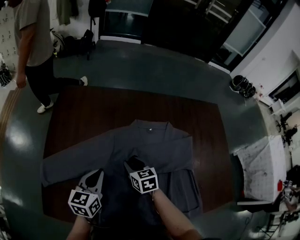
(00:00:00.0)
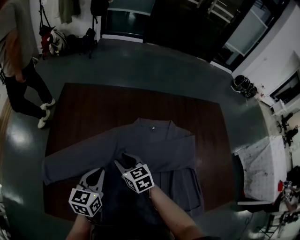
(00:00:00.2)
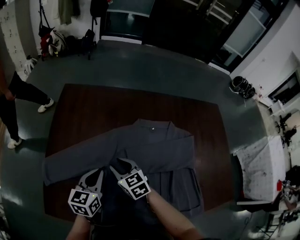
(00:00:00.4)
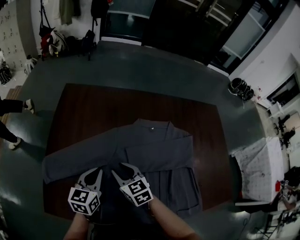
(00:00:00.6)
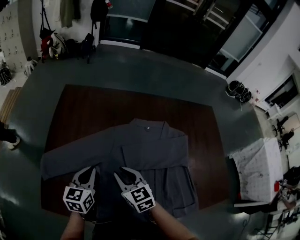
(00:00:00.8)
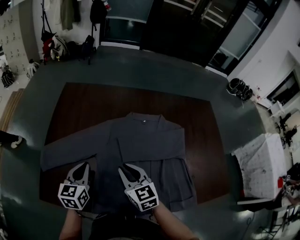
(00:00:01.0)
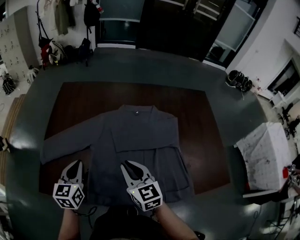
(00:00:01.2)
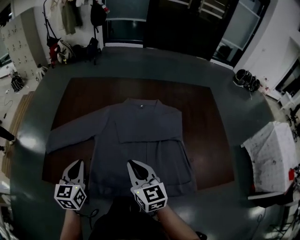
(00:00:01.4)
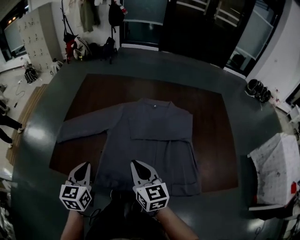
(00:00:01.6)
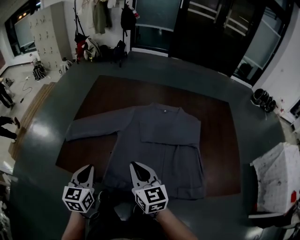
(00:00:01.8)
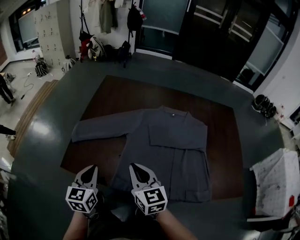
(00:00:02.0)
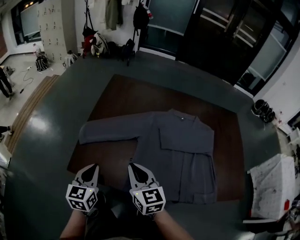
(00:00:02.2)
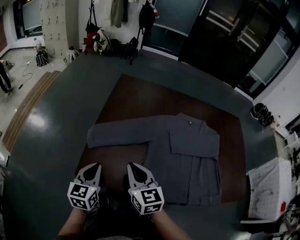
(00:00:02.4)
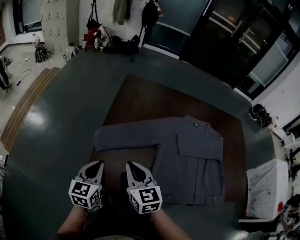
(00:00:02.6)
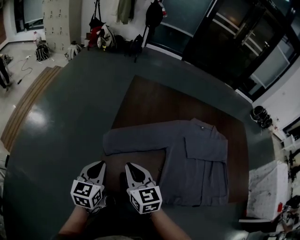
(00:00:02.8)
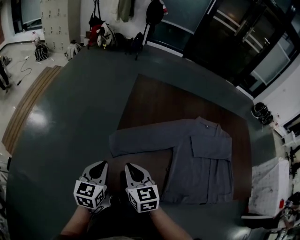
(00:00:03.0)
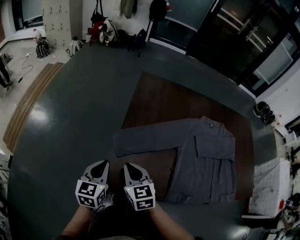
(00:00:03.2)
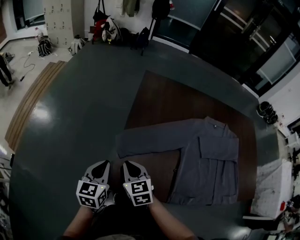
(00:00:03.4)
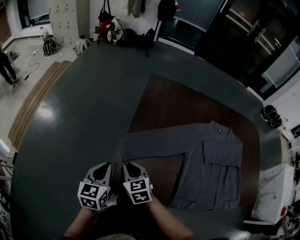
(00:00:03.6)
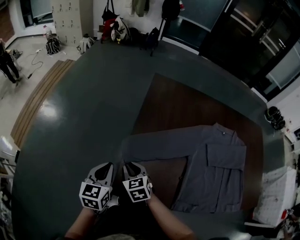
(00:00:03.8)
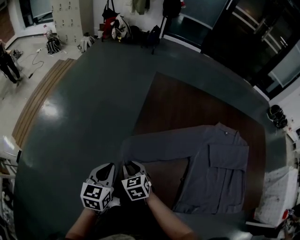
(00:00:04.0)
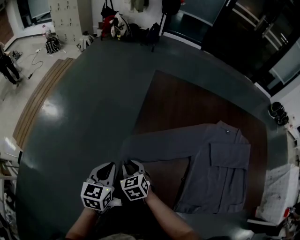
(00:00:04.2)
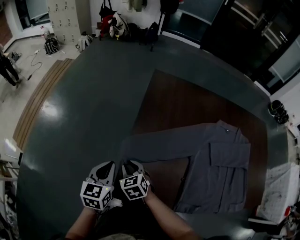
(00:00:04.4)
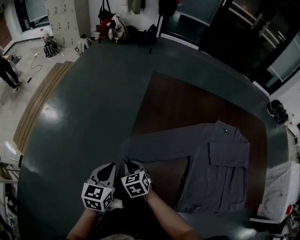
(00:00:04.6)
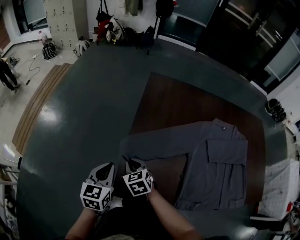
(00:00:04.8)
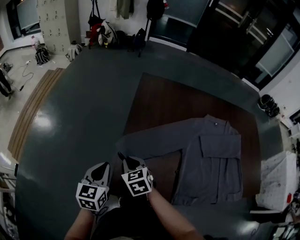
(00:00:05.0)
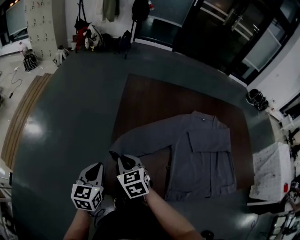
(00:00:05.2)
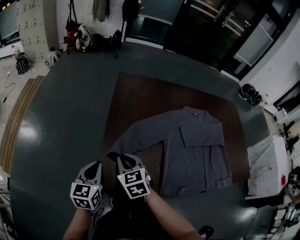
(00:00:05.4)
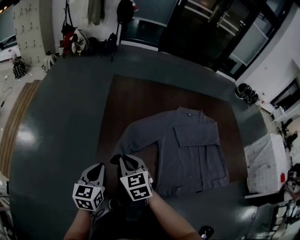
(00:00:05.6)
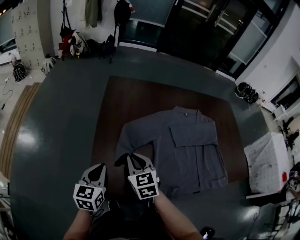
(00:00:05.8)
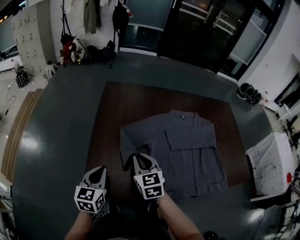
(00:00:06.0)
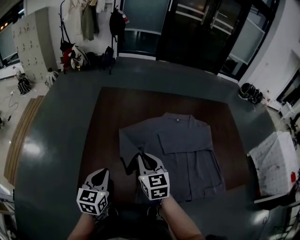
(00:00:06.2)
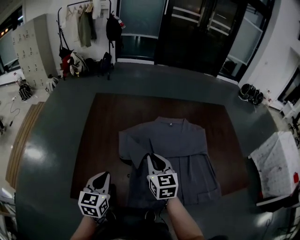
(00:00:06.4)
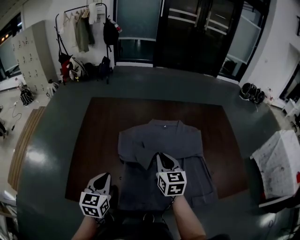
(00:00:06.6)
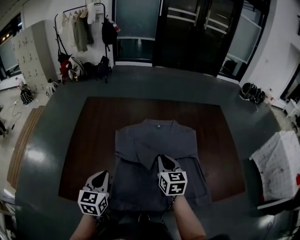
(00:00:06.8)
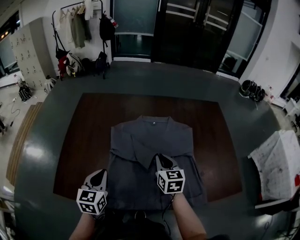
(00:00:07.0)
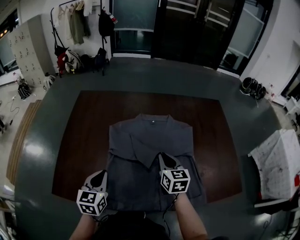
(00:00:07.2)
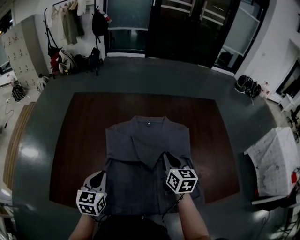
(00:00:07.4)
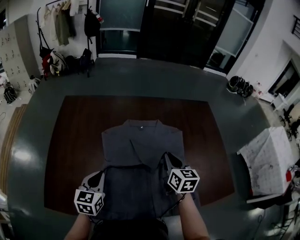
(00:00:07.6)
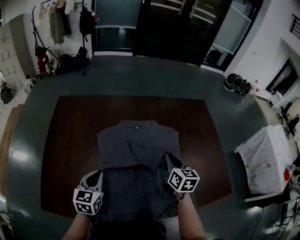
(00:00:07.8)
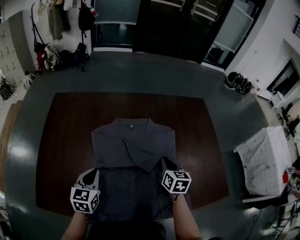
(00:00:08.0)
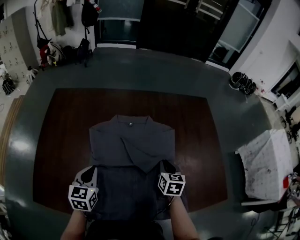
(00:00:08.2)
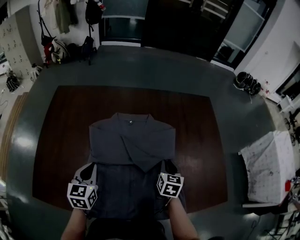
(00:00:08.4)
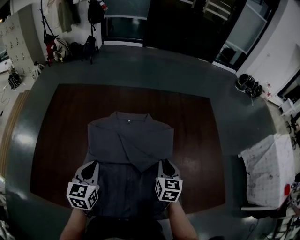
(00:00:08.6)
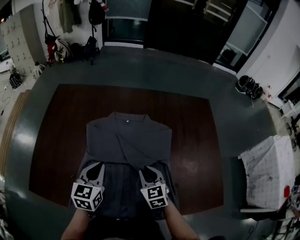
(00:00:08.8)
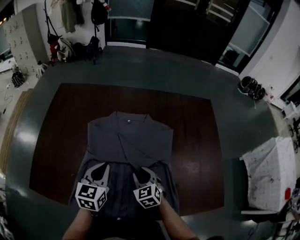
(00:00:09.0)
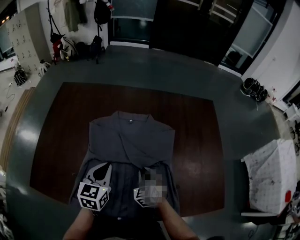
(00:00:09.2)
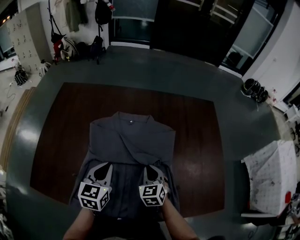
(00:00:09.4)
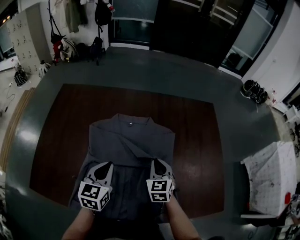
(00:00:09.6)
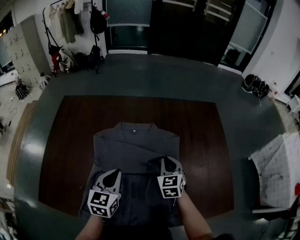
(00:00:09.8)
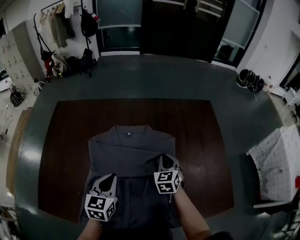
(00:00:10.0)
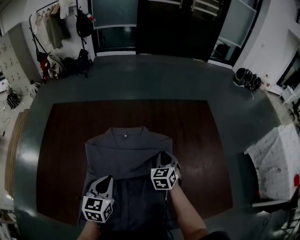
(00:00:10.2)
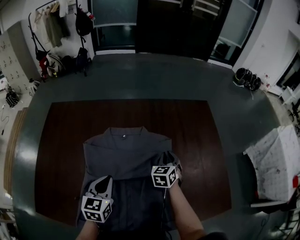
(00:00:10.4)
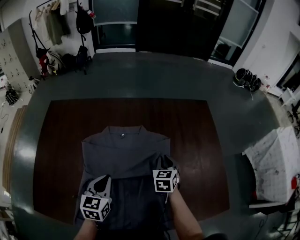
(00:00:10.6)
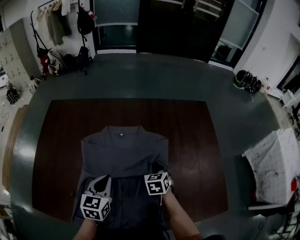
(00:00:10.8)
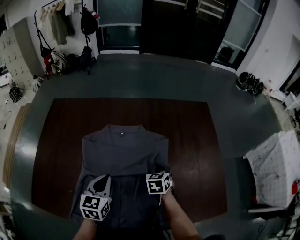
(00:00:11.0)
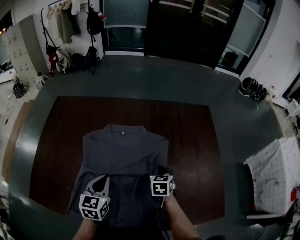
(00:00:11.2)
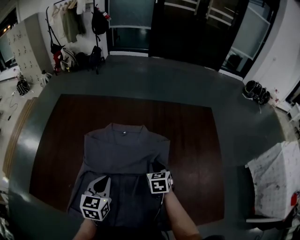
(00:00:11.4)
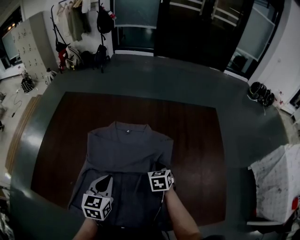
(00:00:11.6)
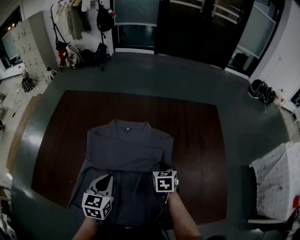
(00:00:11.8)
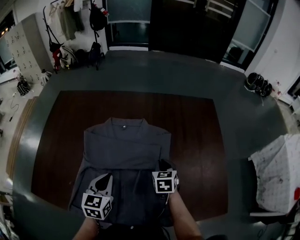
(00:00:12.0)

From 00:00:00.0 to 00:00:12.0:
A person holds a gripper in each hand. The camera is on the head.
From 00:00:00.0 to 00:00:01.6: The right gripper is displaced backward and upward by roughly 30 cm, changes its angle by approximately 30 degrees, and closes up. Meanwhile the left gripper is displaced backward by approximately 20 cm.
From 00:00:01.6 to 00:00:03.0: The grippers both shift to the left by some 35 cm.
From 00:00:03.0 to 00:00:04.4: The right gripper moves downward, forward and to the left, about 15 cm, and swivels about 30 degrees. The left gripper is displaced forward by roughly 5 cm.
From 00:00:04.4 to 00:00:06.0: The left gripper heads to the right and backward, covering some 15 cm. The right gripper heads to the right and upward, covering about 25 cm, and changes its angle by roughly 30 degrees.
From 00:00:06.0 to 00:00:07.6: The left gripper is displaced to the right by about 25 cm; the right gripper is displaced to the right by some 40 cm, and swivels some 30 degrees.
From 00:00:07.6 to 00:00:09.0: The right gripper is displaced downward by approximately 15 cm, and rotates roughly 40 degrees; the left gripper travels to the right by roughly 15 cm.
From 00:00:09.0 to 00:00:10.4: The right gripper is displaced forward and to the right by some 20 cm, and turns by approximately 30 degrees.
From 00:00:10.4 to 00:00:12.0: The right gripper shifts some 5 cm backward, and changes its angle by roughly 20 degrees. The left gripper ends up some 5 cm from where it was.

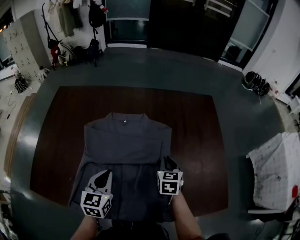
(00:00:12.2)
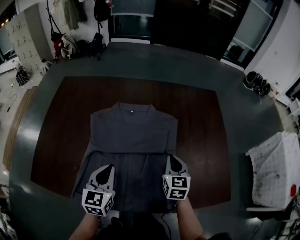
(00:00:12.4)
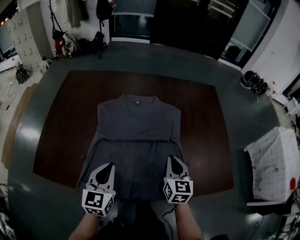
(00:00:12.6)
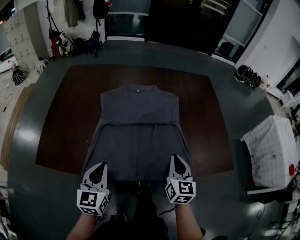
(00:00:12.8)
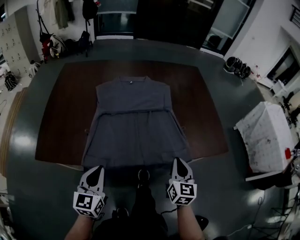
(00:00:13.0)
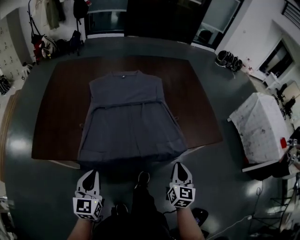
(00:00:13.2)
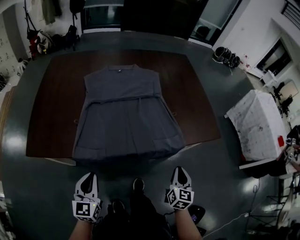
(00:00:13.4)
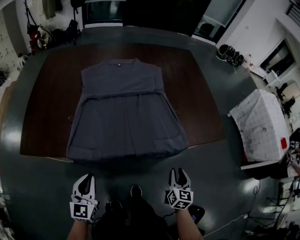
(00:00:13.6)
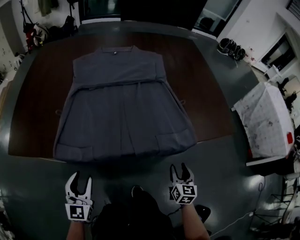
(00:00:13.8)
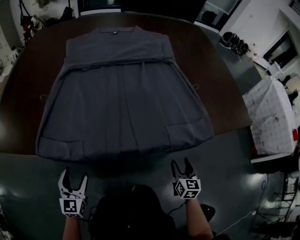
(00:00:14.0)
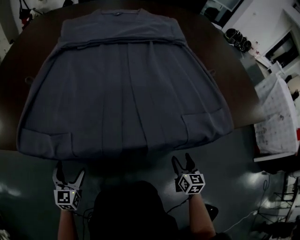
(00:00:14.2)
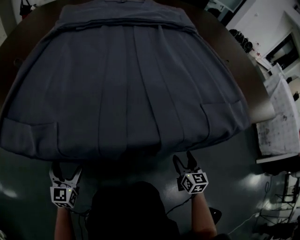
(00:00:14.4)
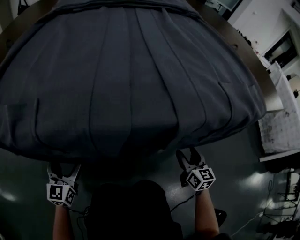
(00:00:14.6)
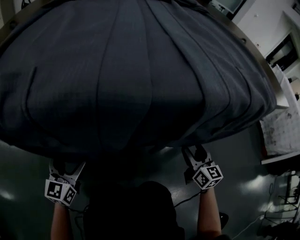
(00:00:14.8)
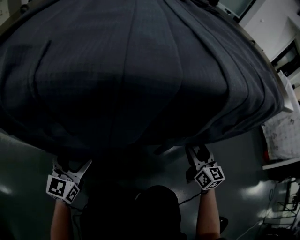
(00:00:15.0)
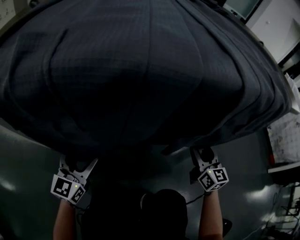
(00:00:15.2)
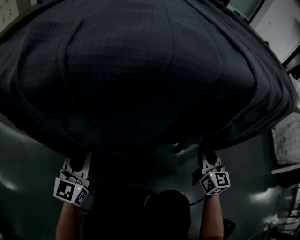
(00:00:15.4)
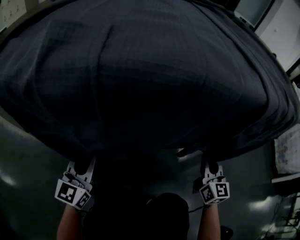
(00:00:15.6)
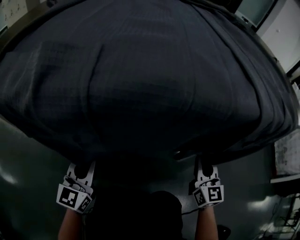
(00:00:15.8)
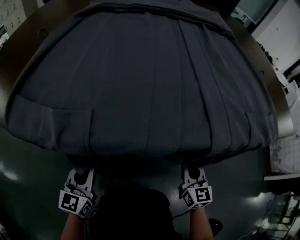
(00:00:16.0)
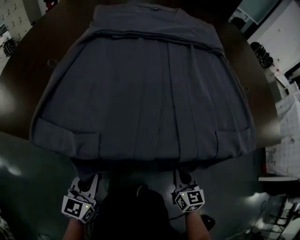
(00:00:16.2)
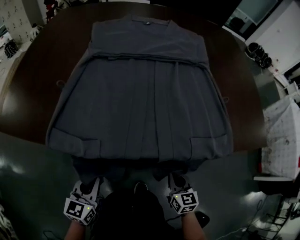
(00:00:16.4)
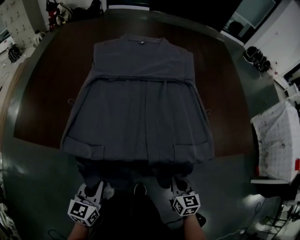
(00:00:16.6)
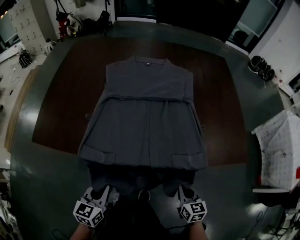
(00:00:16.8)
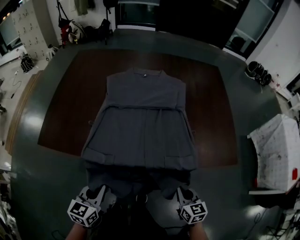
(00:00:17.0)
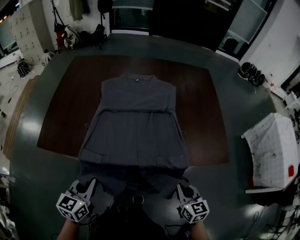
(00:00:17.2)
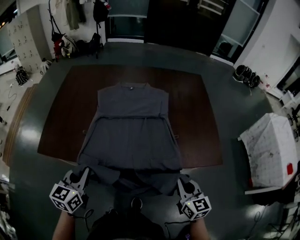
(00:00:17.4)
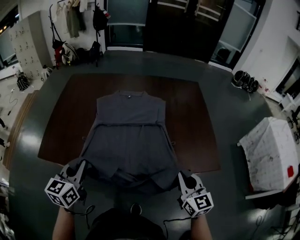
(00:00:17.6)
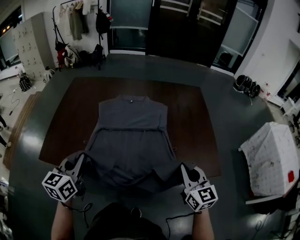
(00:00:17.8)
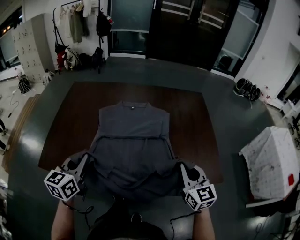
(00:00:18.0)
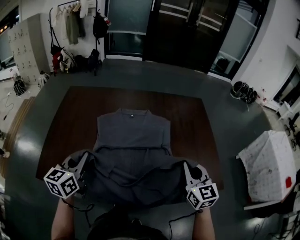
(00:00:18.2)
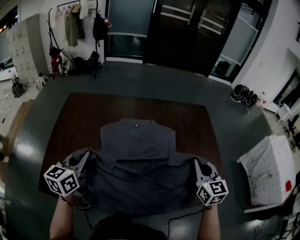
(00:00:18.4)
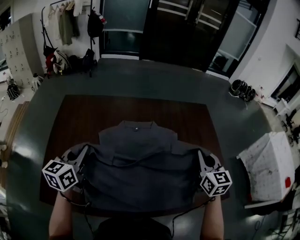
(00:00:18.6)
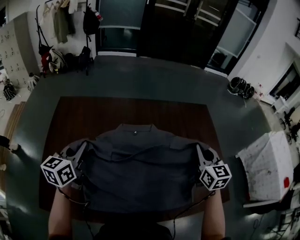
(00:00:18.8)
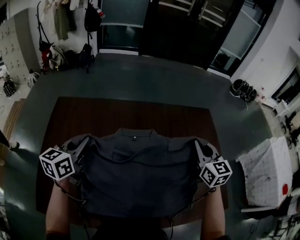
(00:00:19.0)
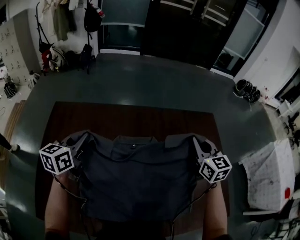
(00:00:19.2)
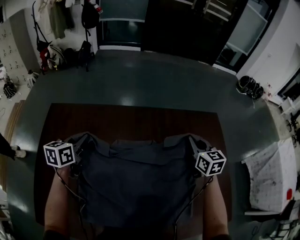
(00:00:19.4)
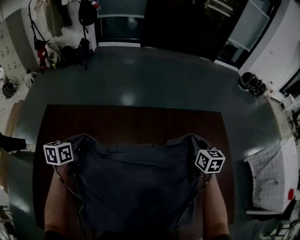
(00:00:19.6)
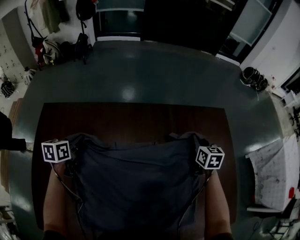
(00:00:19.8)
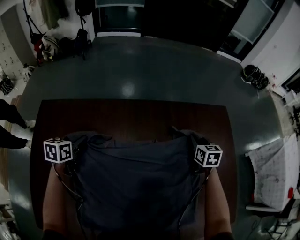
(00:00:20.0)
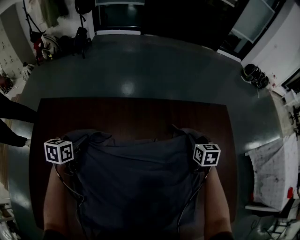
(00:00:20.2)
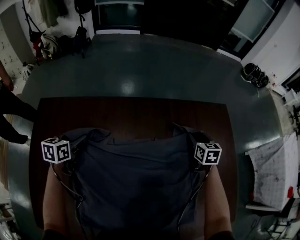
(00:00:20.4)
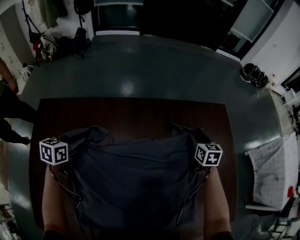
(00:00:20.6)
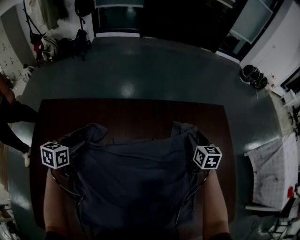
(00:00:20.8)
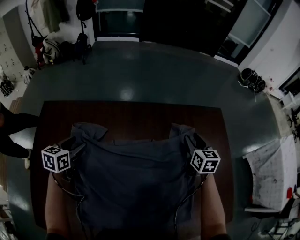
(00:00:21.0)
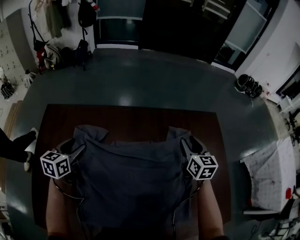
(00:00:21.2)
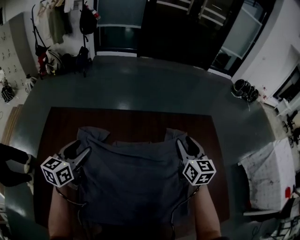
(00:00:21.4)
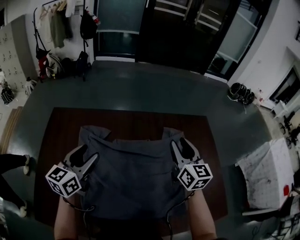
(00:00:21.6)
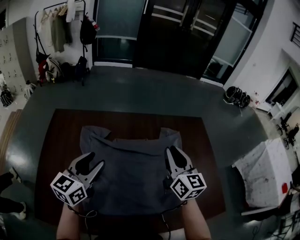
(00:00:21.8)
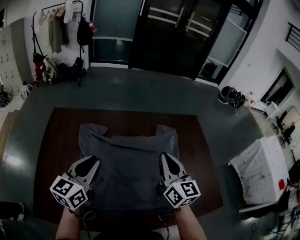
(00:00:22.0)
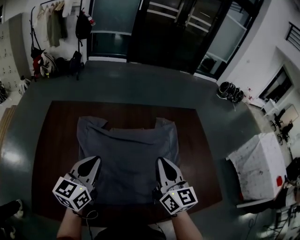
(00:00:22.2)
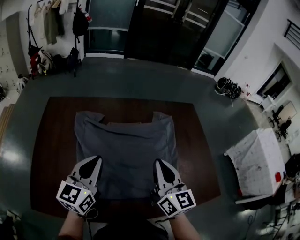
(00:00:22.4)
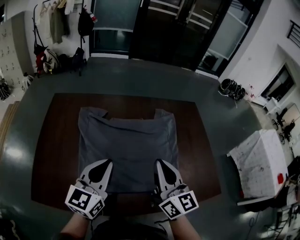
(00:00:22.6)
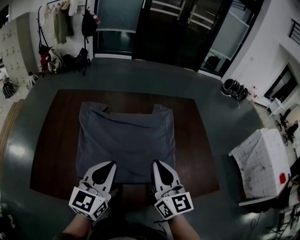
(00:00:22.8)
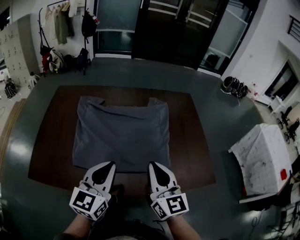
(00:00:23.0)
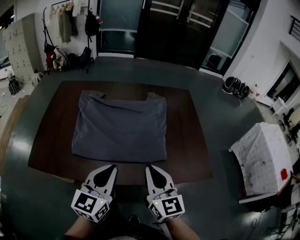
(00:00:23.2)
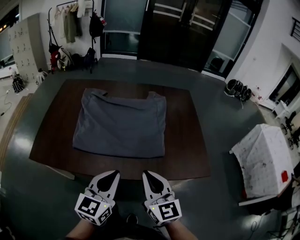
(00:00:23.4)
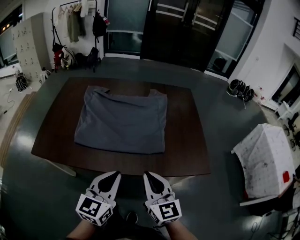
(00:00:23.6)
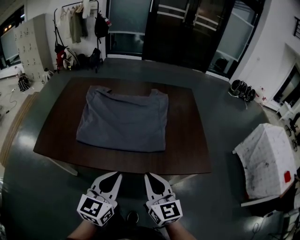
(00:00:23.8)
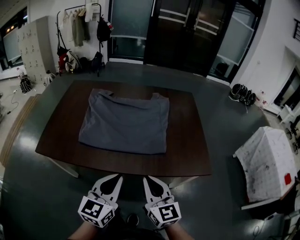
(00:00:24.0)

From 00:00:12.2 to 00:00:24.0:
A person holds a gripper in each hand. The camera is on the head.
From 00:00:12.2 to 00:00:13.6: Both grippers move backward, about 40 cm. The right gripper swivels some 20 degrees.
From 00:00:13.6 to 00:00:15.2: Both grippers move downward, about 40 cm. The left gripper opens. Meanwhile the right gripper rotates some 30 degrees, and opens.
From 00:00:15.2 to 00:00:16.6: The two grippers go roughly 25 cm upward. The left gripper swivels roughly 20 degrees, and closes. The right gripper rotates about 20 degrees, and closes.
From 00:00:16.6 to 00:00:18.2: Both grippers move upward and forward, roughly 40 cm. The right gripper changes its angle by roughly 30 degrees.
From 00:00:18.2 to 00:00:19.6: Both grippers are carried forward, roughly 40 cm. The right gripper changes its angle by some 20 degrees; the left gripper swivels about 20 degrees.
From 00:00:19.6 to 00:00:21.0: The left gripper opens up, while the right gripper reaches approximately 10 cm downward, then returns, and opens.
From 00:00:21.0 to 00:00:22.6: The left gripper heads backward, upward and to the right, covering about 40 cm, points its fingers approximately 30 degrees further upward, and closes, while the right gripper moves backward and upward, roughly 40 cm, tilts its fingers approximately 30 degrees upward, and closes its fingers.
From 00:00:22.6 to 00:00:24.0: The right gripper moves backward, roughly 30 cm, while the left gripper moves backward and to the right, roughly 35 cm.
